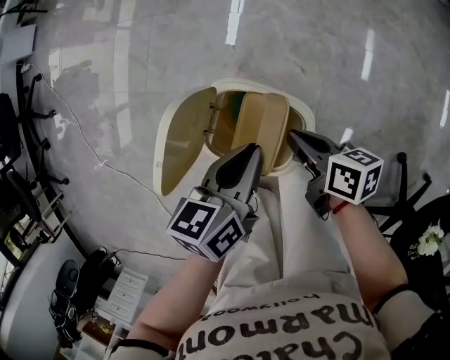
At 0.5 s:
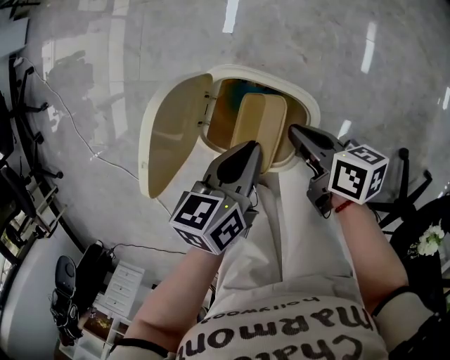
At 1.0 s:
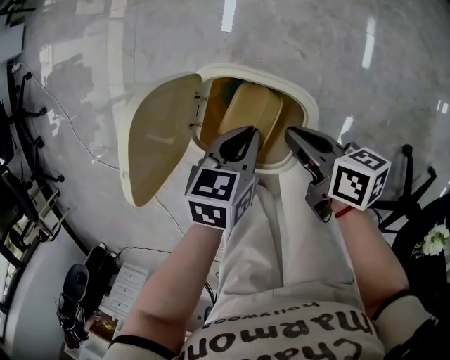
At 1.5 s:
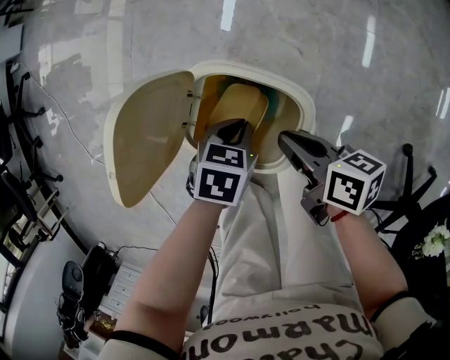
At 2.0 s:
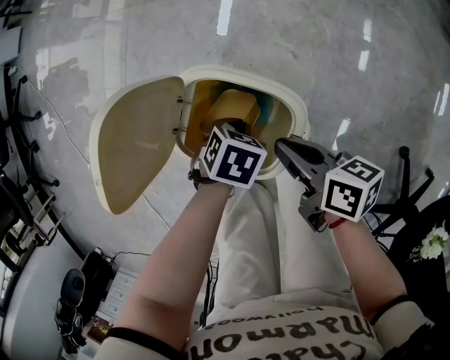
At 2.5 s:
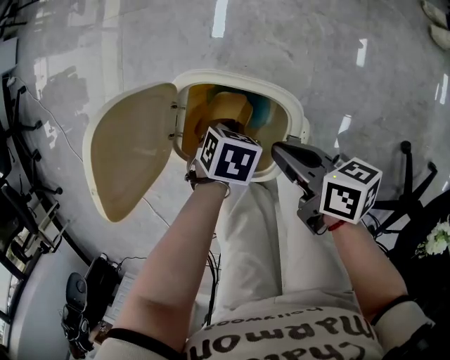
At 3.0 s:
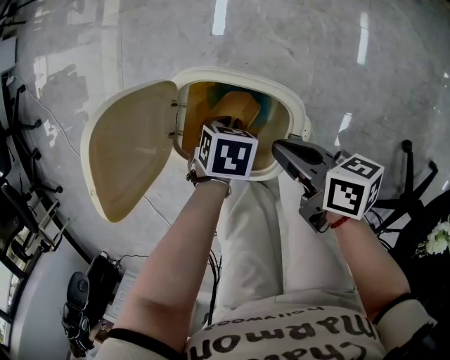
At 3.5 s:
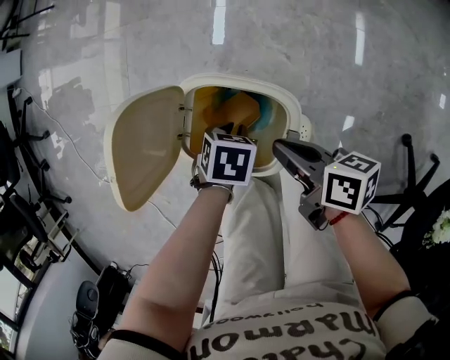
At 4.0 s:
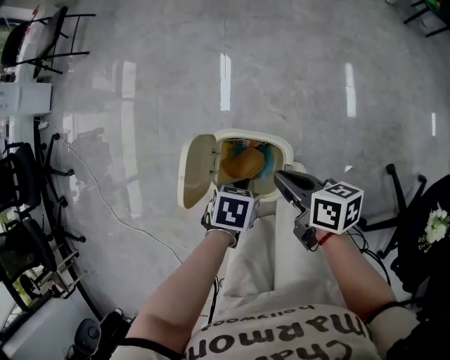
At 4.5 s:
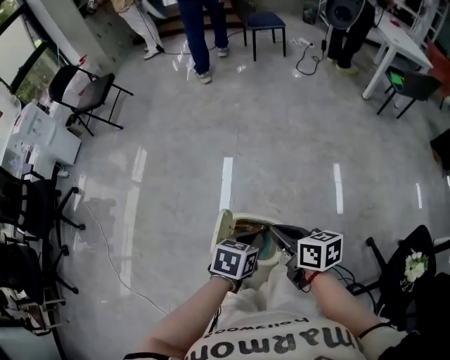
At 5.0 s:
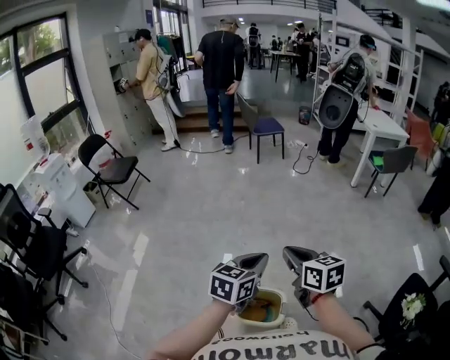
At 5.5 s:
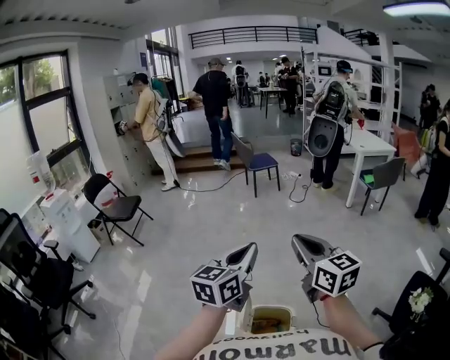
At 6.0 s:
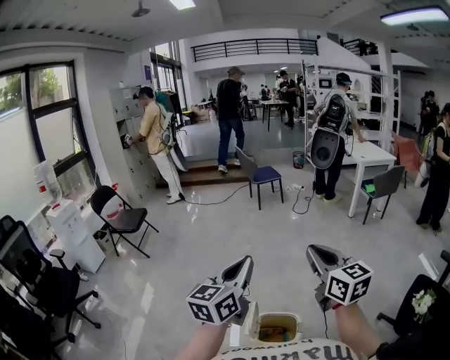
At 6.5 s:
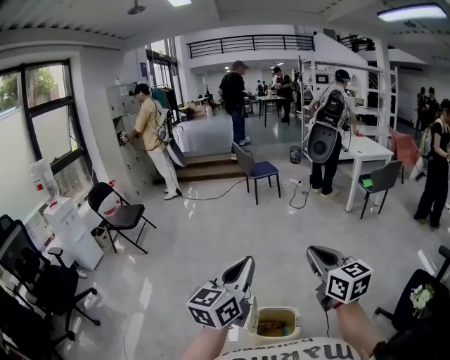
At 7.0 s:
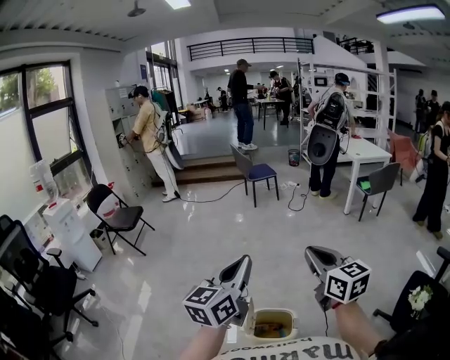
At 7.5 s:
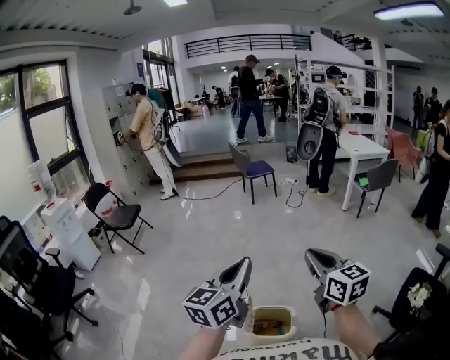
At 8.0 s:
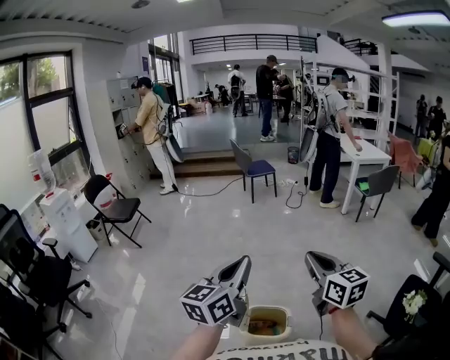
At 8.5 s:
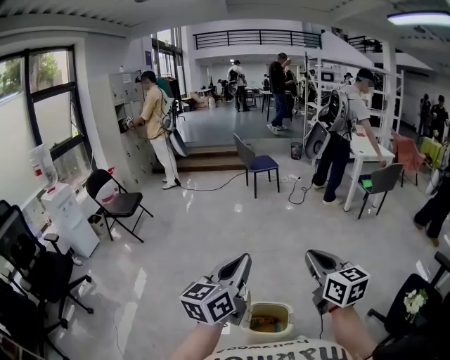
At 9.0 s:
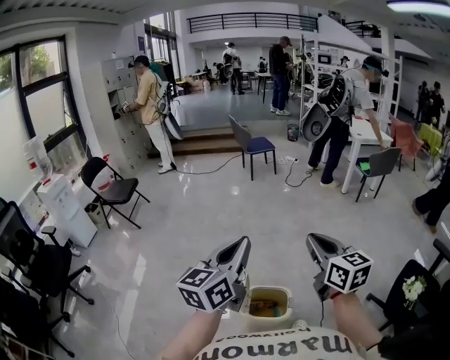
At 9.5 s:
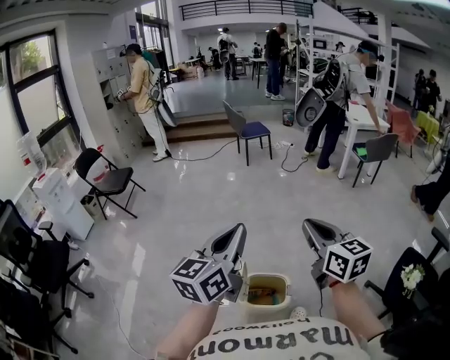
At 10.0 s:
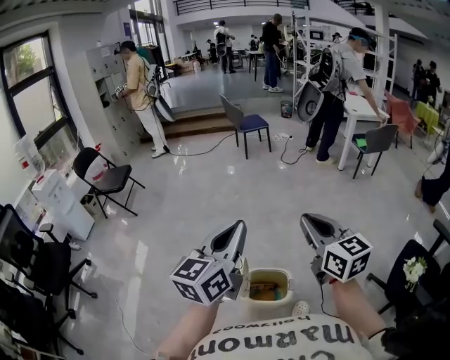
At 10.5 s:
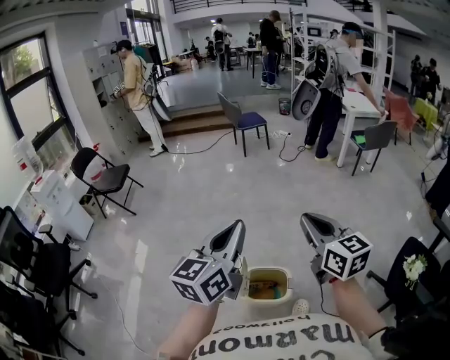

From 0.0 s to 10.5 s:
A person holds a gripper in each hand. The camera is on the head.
From 0.0 s to 2.0 s: The left gripper is displaced downward by about 20 cm, and tips its fingers downward by some 40 degrees.
From 2.0 s to 4.0 s: Both grippers travel together upward, some 15 cm. The left gripper opens, then closes again.
From 4.0 s to 6.5 s: Both grippers travel together upward, some 60 cm. The right gripper turns by roughly 60 degrees, while the left gripper tips its fingers upward by some 70 degrees.
From 6.5 s to 10.5 s: There are only small adjustments of the grippers.

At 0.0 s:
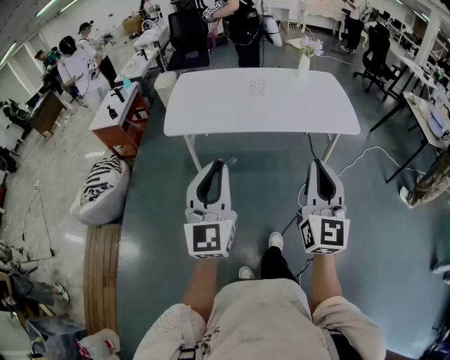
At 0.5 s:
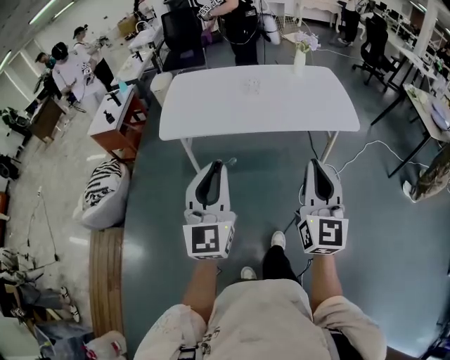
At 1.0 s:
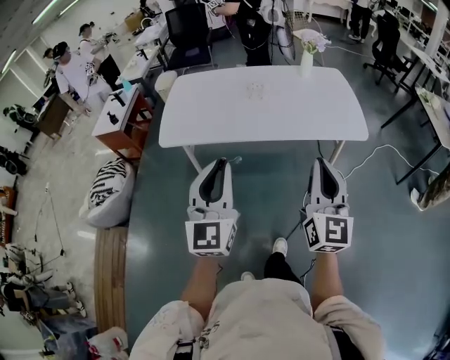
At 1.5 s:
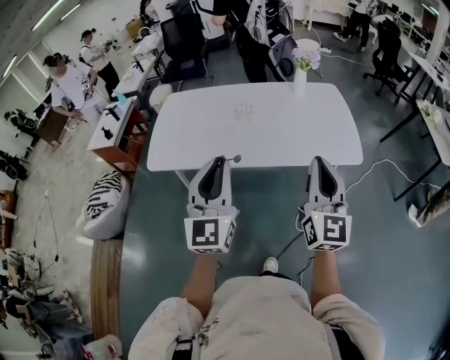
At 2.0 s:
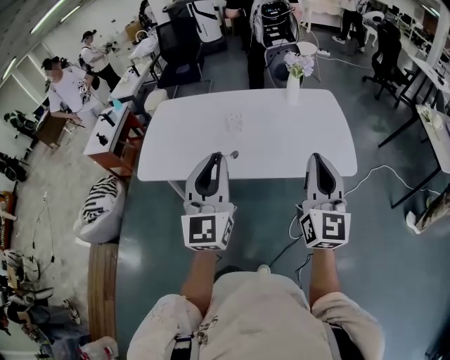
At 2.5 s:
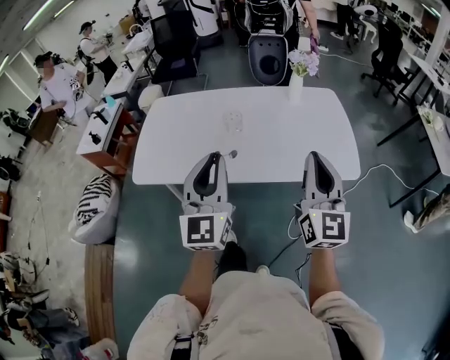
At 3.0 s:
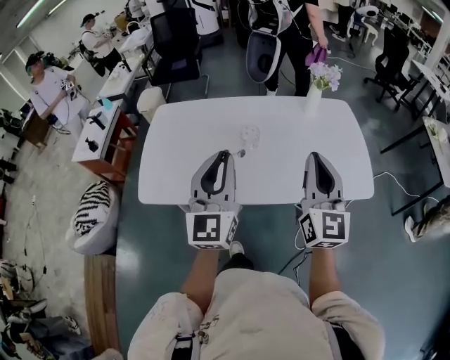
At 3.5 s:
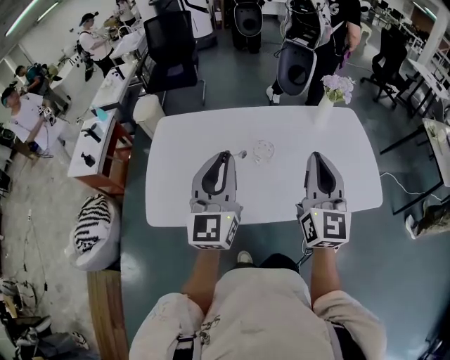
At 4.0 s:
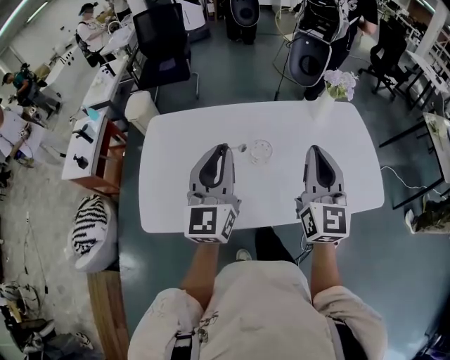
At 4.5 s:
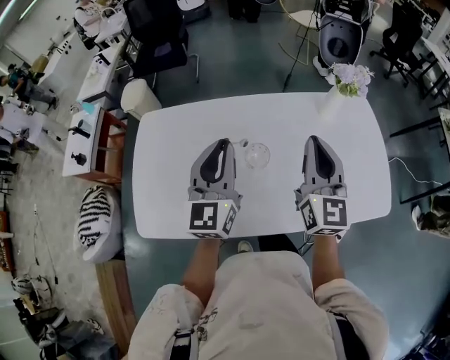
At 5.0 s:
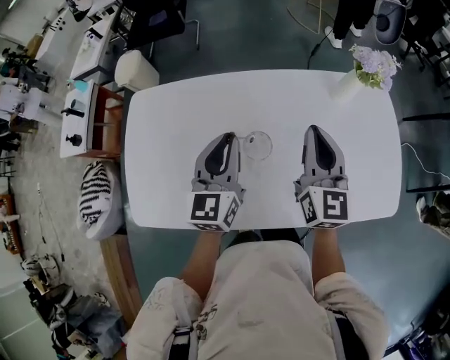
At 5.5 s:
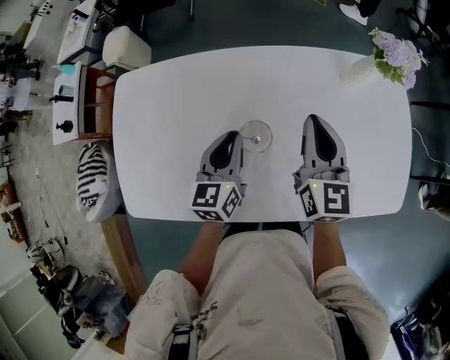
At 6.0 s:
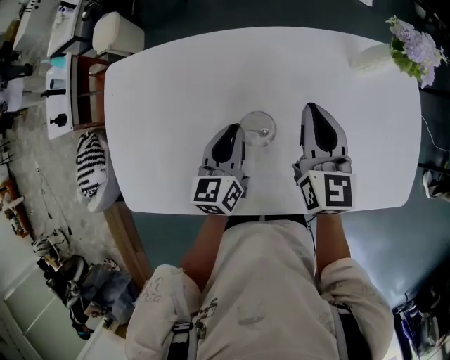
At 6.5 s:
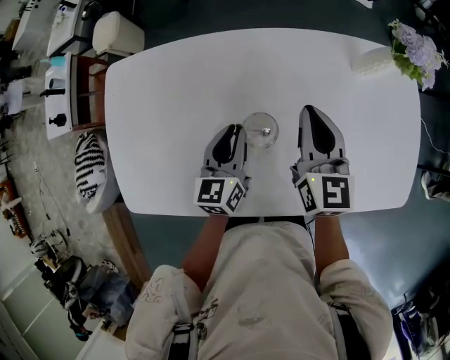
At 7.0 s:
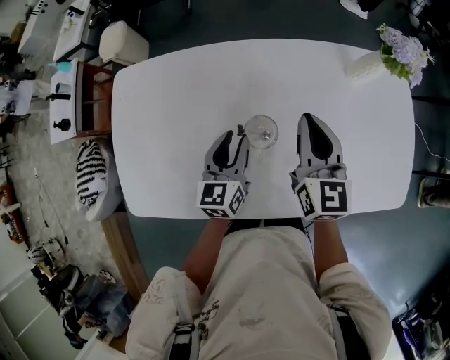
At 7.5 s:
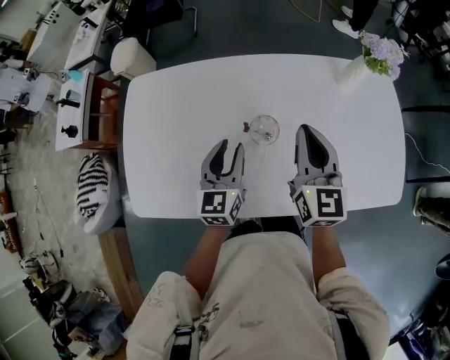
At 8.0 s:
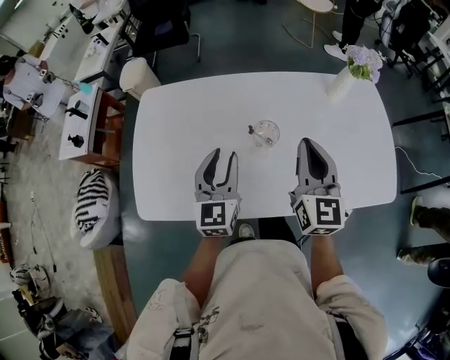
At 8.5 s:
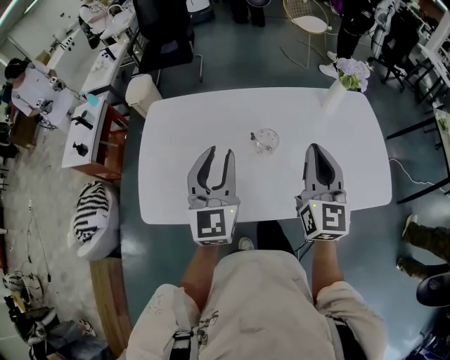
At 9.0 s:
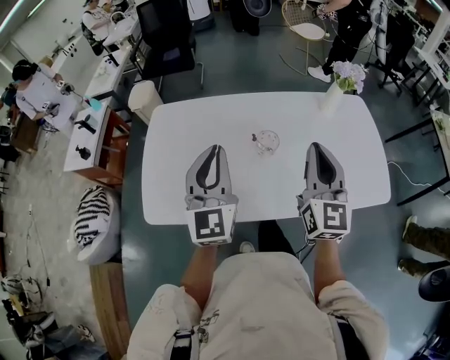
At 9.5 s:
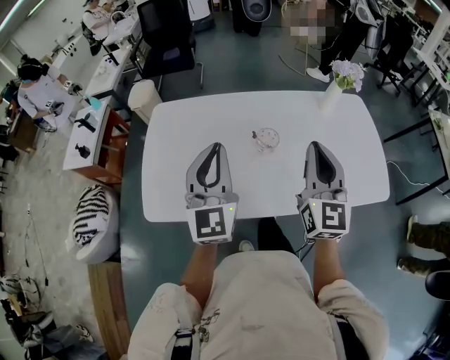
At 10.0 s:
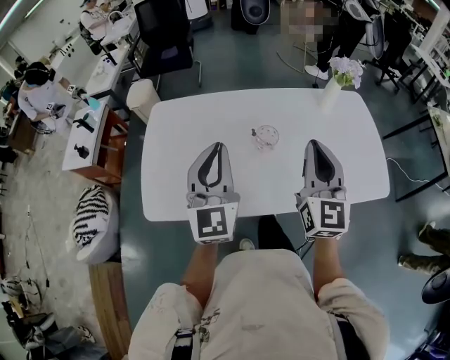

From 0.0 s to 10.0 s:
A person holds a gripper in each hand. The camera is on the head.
From 0.0 s to 2.0 s: The grippers both shift forward and to the right by some 35 cm.
From 2.0 s to 4.0 s: Both grippers travel together forward and to the left, roughly 35 cm.
From 4.0 s to 6.0 s: The right gripper goes some 35 cm forward and downward, and rotates approximately 30 degrees. Meanwhile the left gripper travels downward and forward by some 35 cm, and angles its fingers downward, by some 30 degrees.
From 6.0 s to 8.0 s: The right gripper is displaced backward and upward by approximately 20 cm; the left gripper heads upward, backward and to the left, covering about 20 cm, and turns by roughly 30 degrees.
From 8.0 s to 10.0 s: The left gripper moves upward and backward, some 15 cm, and closes; the right gripper is displaced backward and upward by roughly 10 cm.

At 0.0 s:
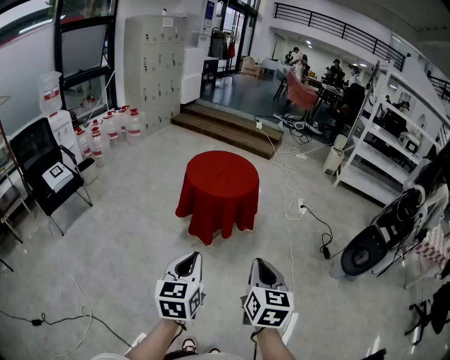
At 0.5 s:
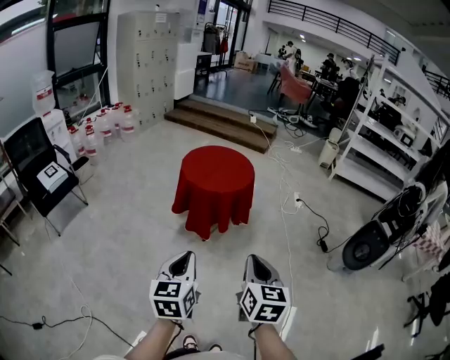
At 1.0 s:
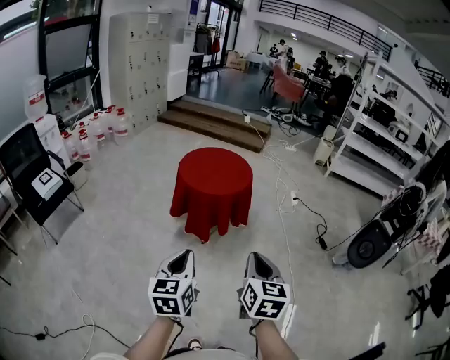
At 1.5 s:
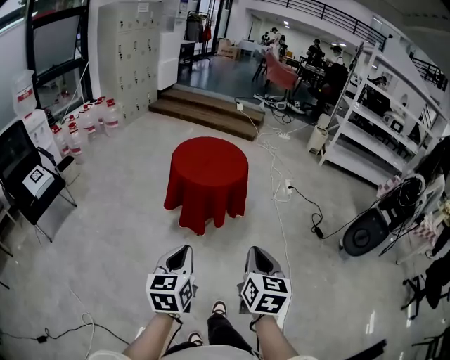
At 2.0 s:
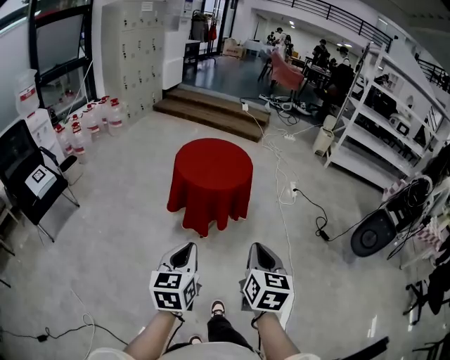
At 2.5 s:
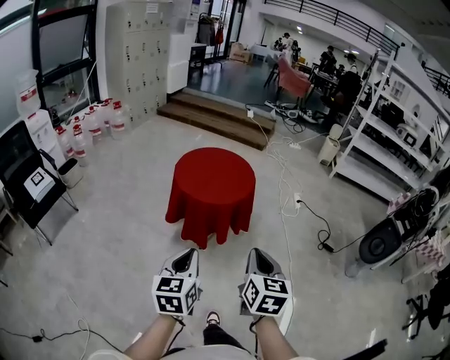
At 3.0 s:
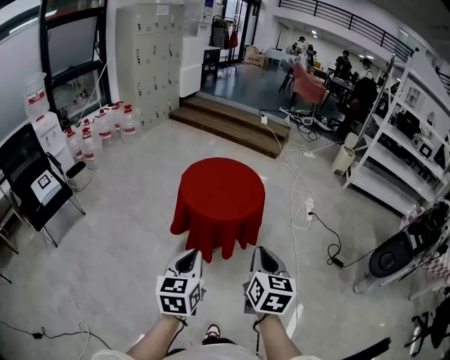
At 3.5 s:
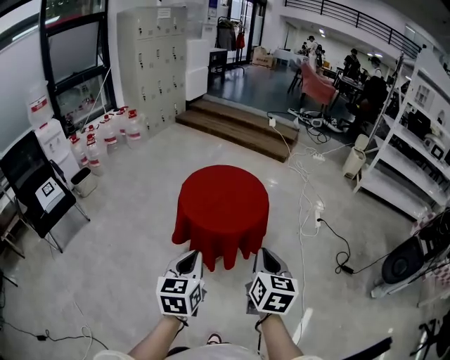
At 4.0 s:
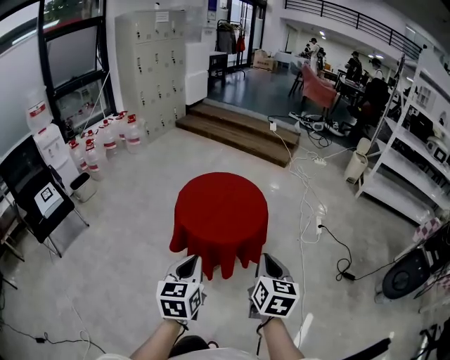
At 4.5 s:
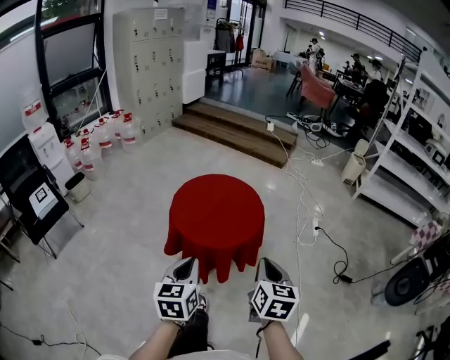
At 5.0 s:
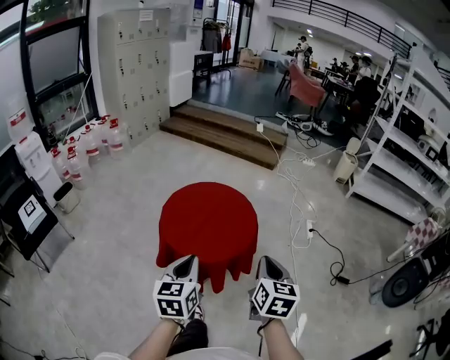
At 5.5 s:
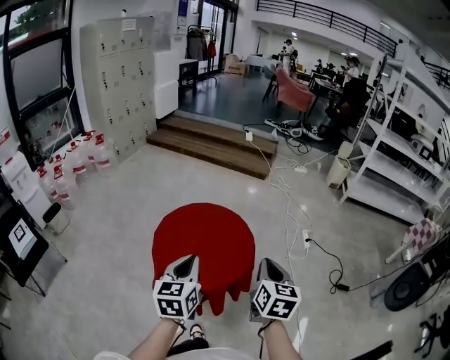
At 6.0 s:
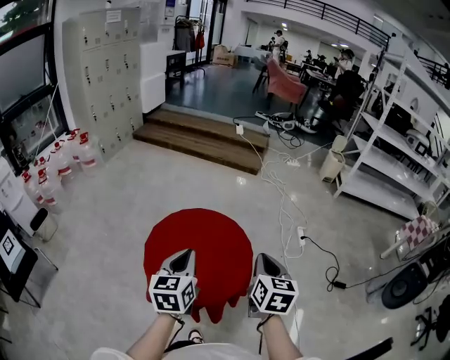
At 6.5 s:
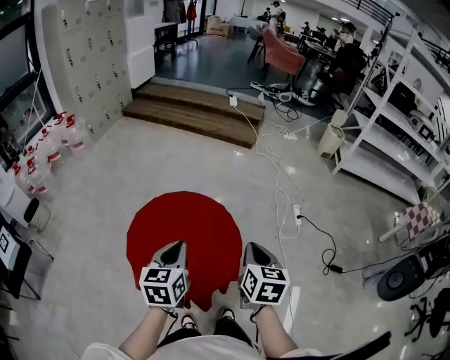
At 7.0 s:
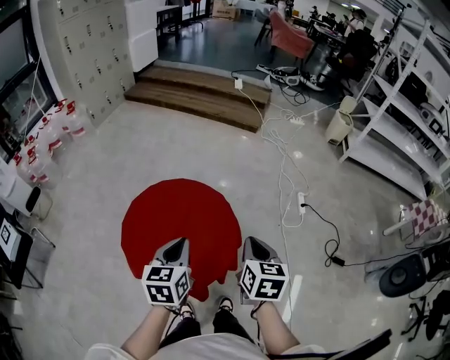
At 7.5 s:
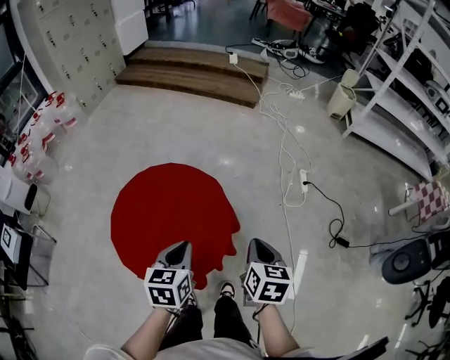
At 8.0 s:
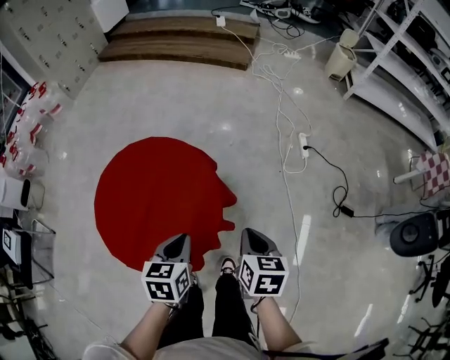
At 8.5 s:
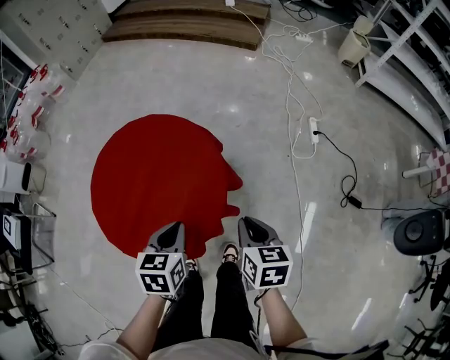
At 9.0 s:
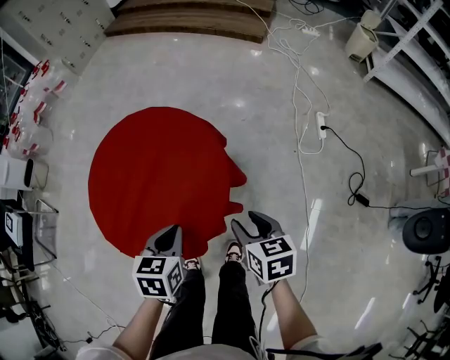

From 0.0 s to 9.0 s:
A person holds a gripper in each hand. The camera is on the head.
From 0.0 s to 2.0 s: The two grippers go some 5 cm forward.
From 2.0 s to 4.5 s: The two grippers go about 30 cm forward.
From 4.5 s to 7.0 s: The two grippers go approximately 30 cm forward.
From 7.0 s to 9.0 s: Both grippers travel together downward, approximately 20 cm. The right gripper turns by approximately 30 degrees, and opens, while the left gripper rotates roughly 20 degrees.
